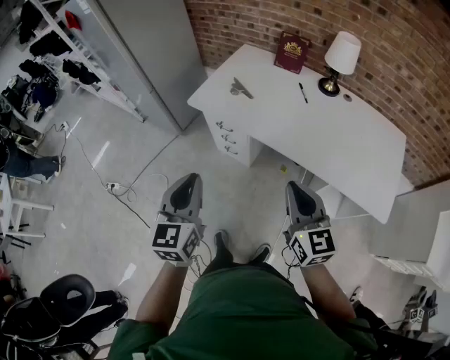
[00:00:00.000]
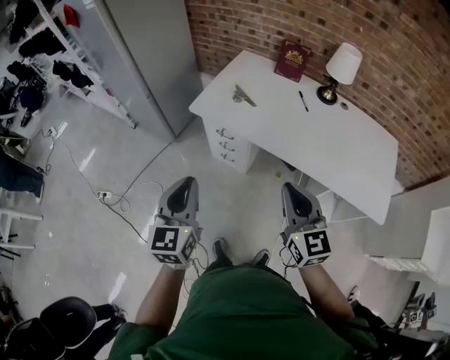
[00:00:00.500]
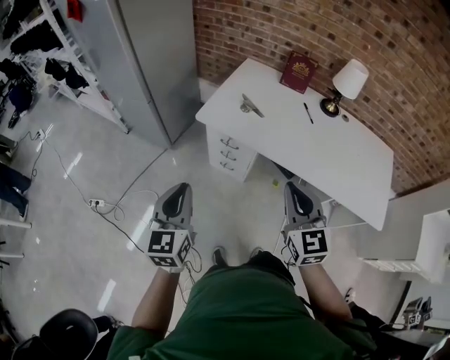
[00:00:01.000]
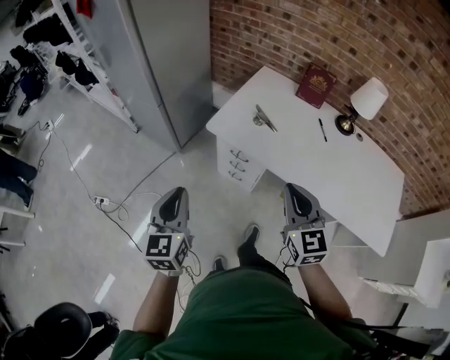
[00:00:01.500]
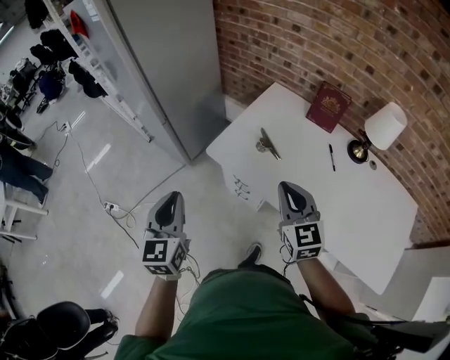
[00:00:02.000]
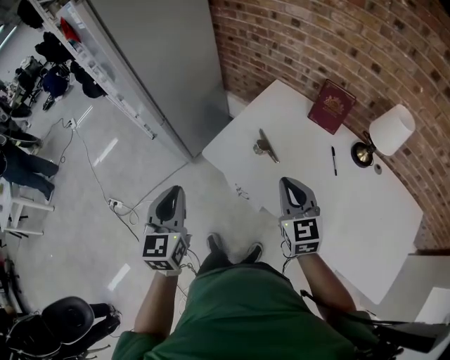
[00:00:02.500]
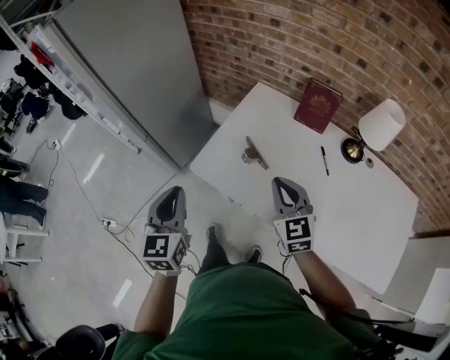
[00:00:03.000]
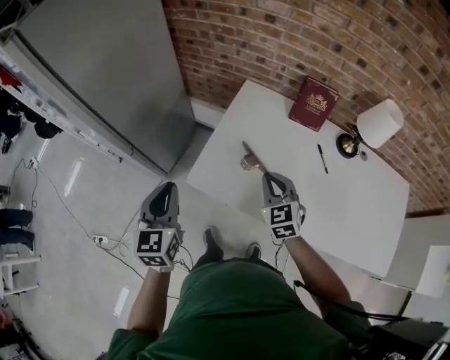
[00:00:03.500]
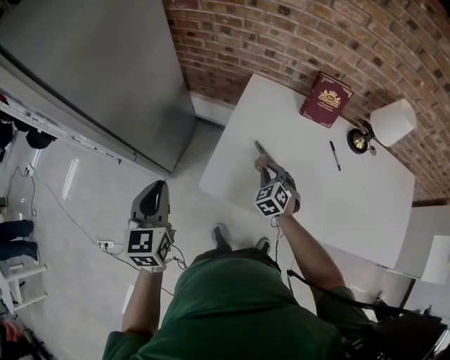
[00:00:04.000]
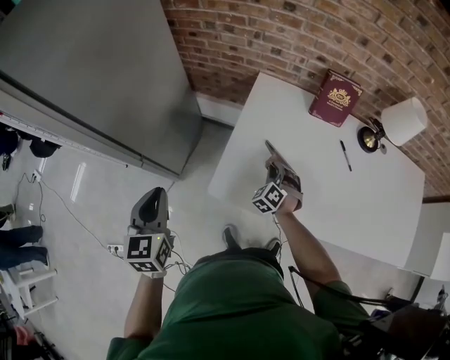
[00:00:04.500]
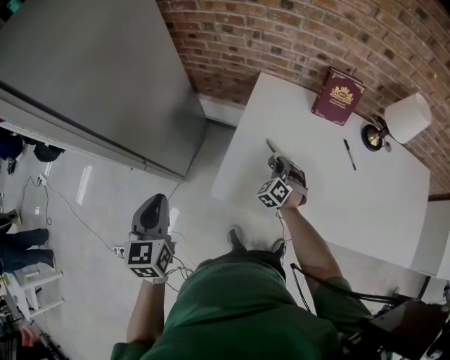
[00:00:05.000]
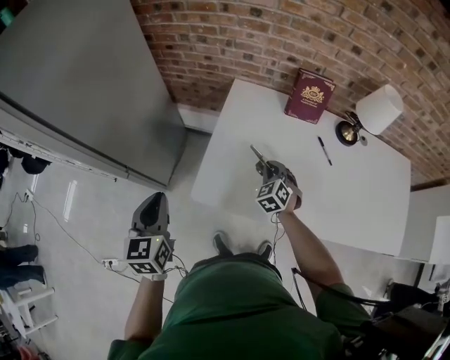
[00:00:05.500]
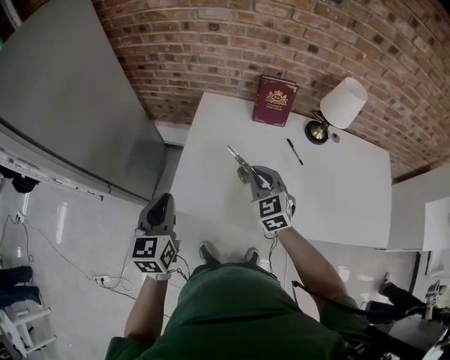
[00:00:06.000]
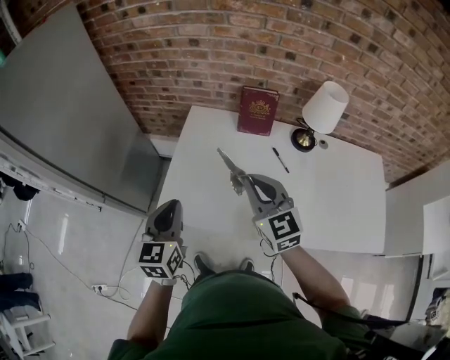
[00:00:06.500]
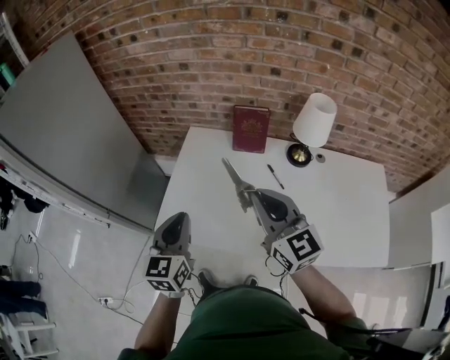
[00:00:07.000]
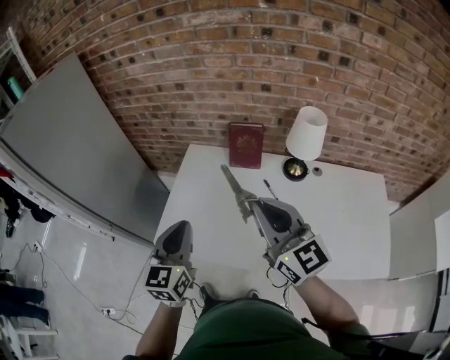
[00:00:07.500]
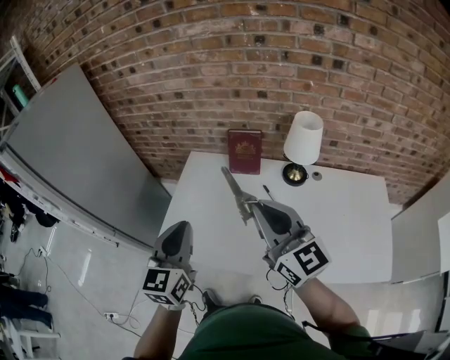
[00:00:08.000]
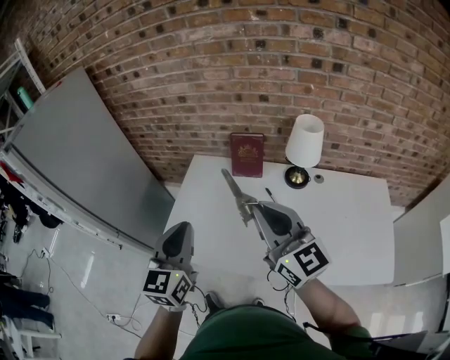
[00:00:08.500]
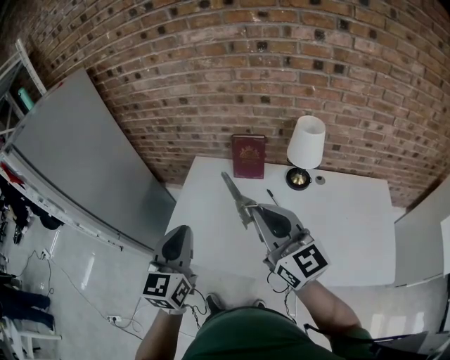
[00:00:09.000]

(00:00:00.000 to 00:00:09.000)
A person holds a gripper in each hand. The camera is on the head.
00:00:00.000 - 00:00:02.000: The right gripper travels forward by approximately 30 cm, while the left gripper shifts about 30 cm forward and to the left.
00:00:02.000 - 00:00:04.500: The left gripper moves roughly 30 cm, while the right gripper travels downward by roughly 30 cm, and angles its fingers downward, by roughly 30 degrees.
00:00:04.500 - 00:00:07.000: The left gripper moves to the right, approximately 35 cm. The right gripper is displaced upward and to the right by about 40 cm, and tips its fingers upward by some 40 degrees.
00:00:07.000 - 00:00:09.000: The right gripper shifts about 5 cm upward. Meanwhile the left gripper travels upward and to the right by roughly 10 cm.

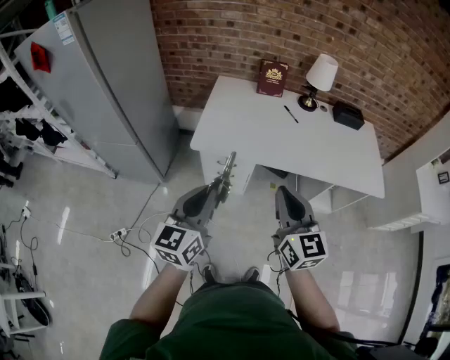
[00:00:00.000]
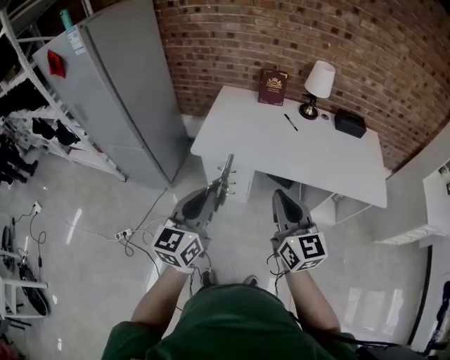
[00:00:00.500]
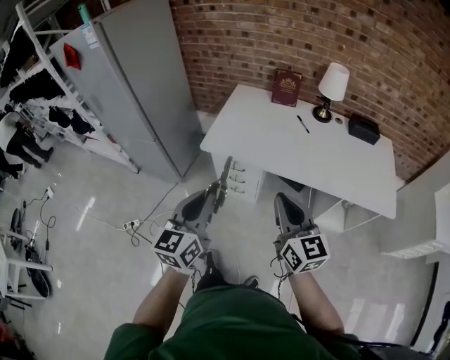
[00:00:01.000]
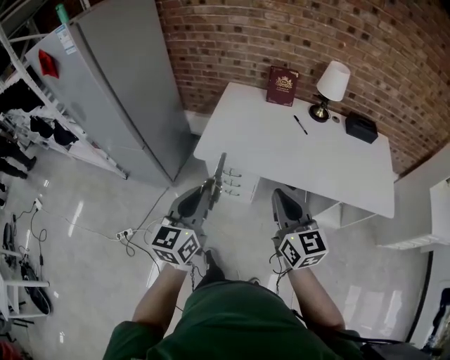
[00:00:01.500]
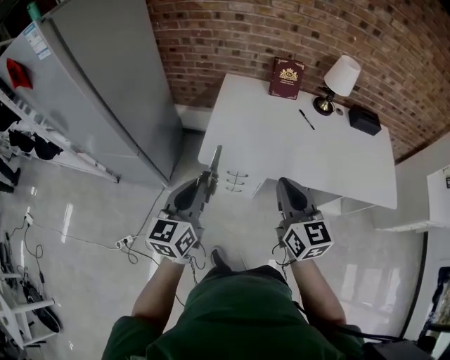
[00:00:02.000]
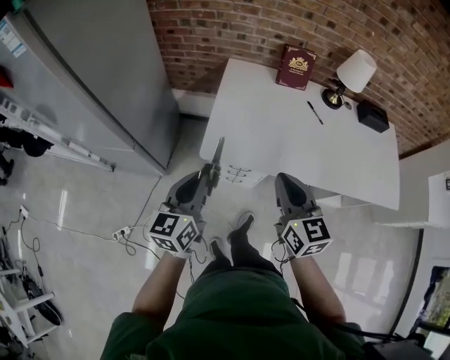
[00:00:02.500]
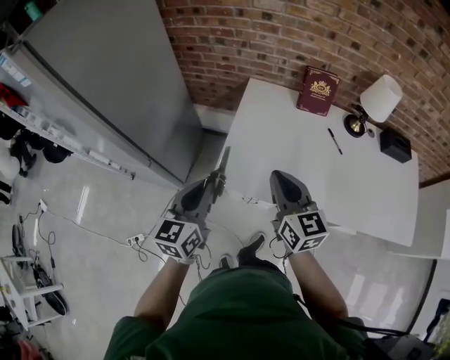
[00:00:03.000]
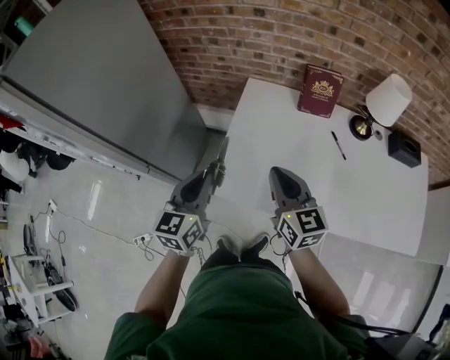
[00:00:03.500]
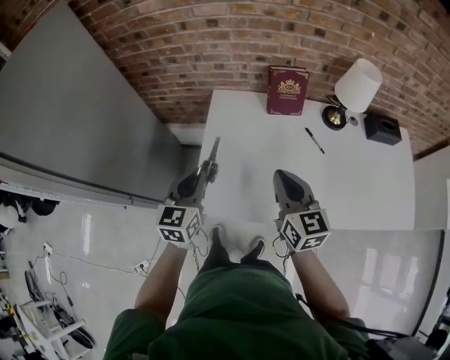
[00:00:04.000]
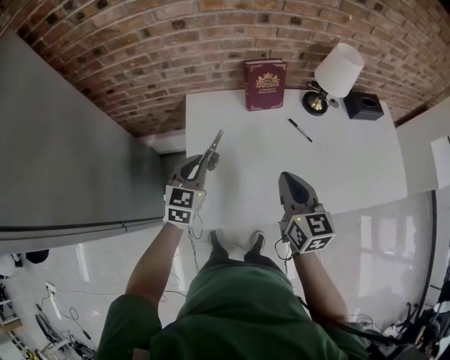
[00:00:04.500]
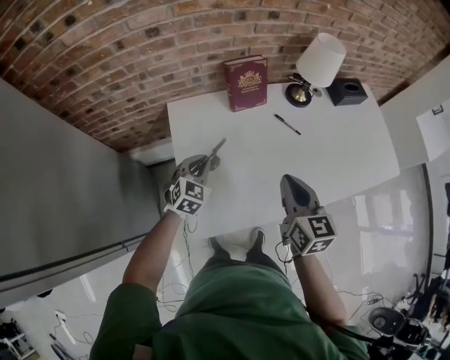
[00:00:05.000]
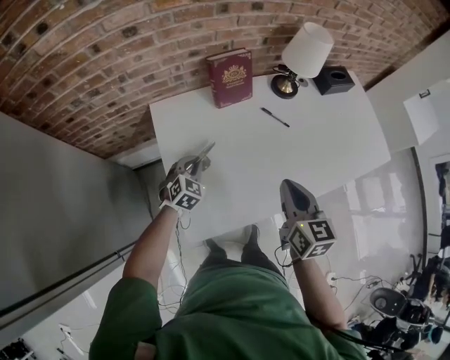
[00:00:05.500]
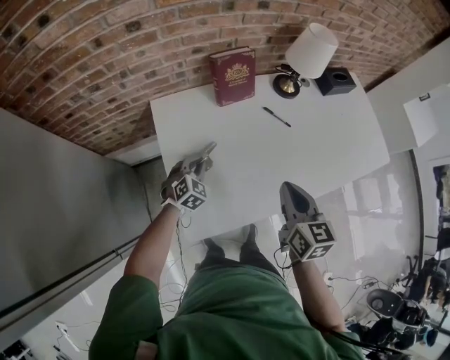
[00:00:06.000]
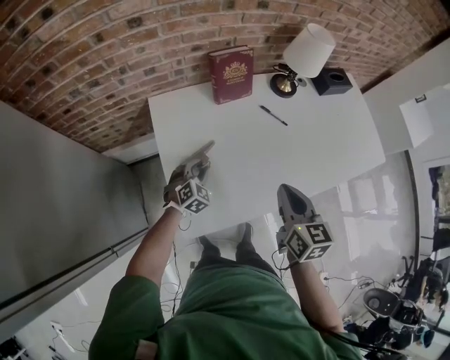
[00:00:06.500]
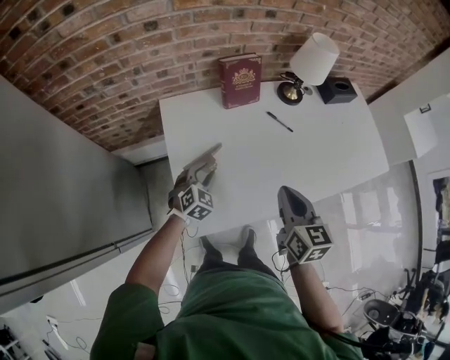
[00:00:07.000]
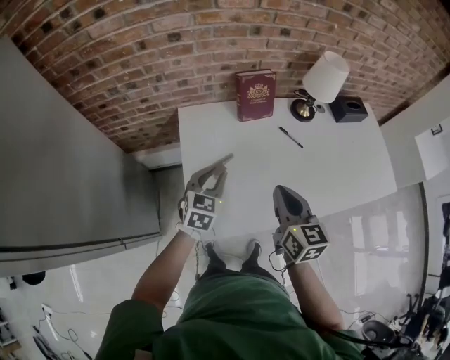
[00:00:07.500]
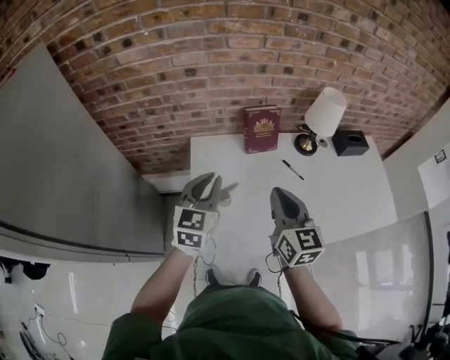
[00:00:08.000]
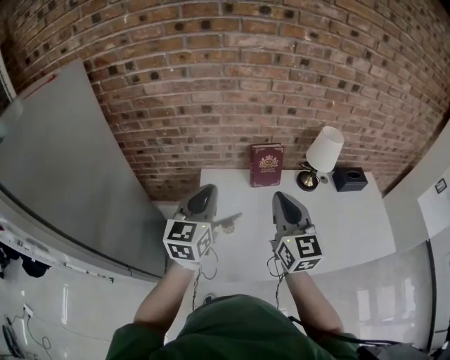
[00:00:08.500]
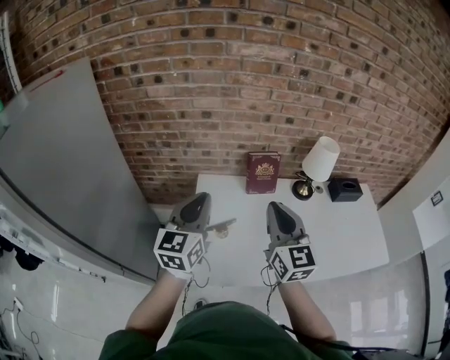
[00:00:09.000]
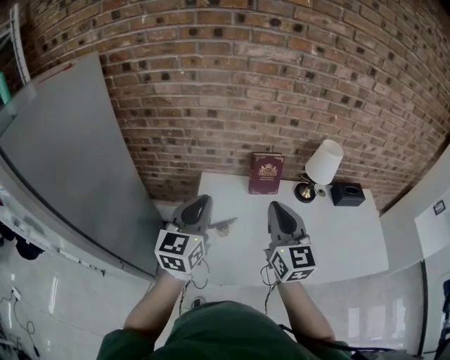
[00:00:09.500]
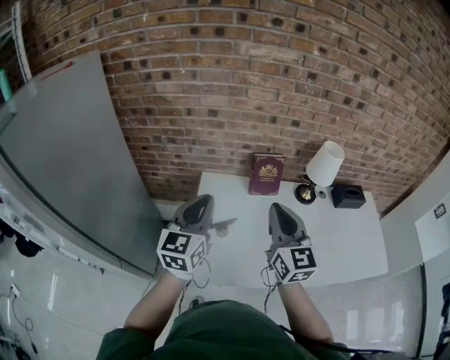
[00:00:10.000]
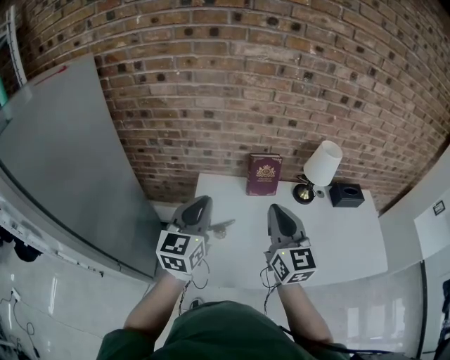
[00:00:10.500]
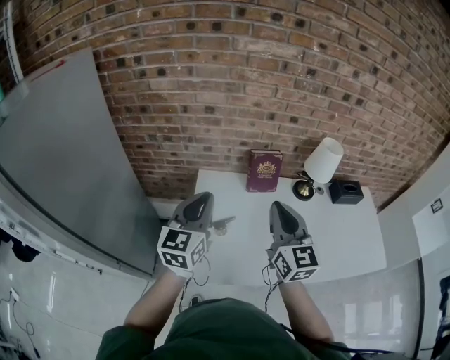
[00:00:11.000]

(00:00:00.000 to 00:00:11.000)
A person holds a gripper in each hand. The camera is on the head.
00:00:00.000 - 00:00:02.000: The right gripper travels forward by some 15 cm. Meanwhile the left gripper is displaced forward and to the left by approximately 15 cm.
00:00:02.000 - 00:00:03.500: Both grippers travel together forward, approximately 20 cm.
00:00:03.500 - 00:00:05.500: The left gripper moves downward, about 25 cm, and changes its angle by some 60 degrees. Meanwhile the right gripper shifts by approximately 10 cm, and swivels roughly 50 degrees.
00:00:05.500 - 00:00:07.500: The left gripper is displaced upward and backward by about 15 cm, and rotates about 30 degrees; the right gripper shifts by some 5 cm.
00:00:07.500 - 00:00:09.000: The right gripper heads upward, covering some 15 cm, and rotates about 30 degrees; the left gripper is displaced upward by roughly 25 cm, and points its fingers about 30 degrees further upward.
00:00:09.000 - 00:00:11.000: There are only small adjustments of the grippers.

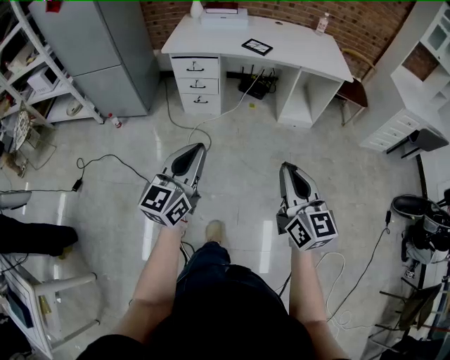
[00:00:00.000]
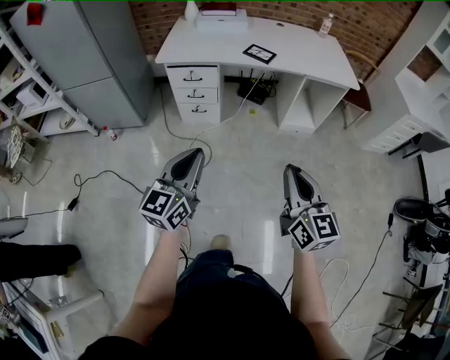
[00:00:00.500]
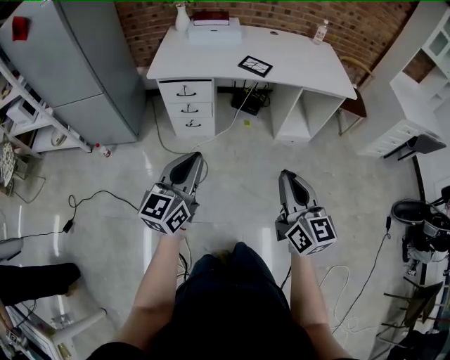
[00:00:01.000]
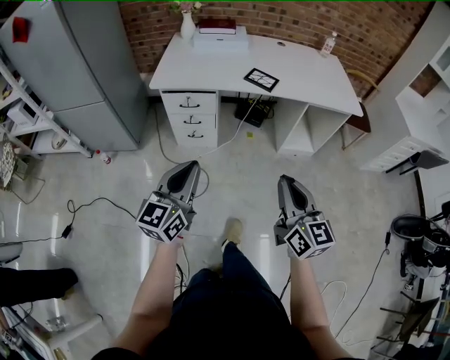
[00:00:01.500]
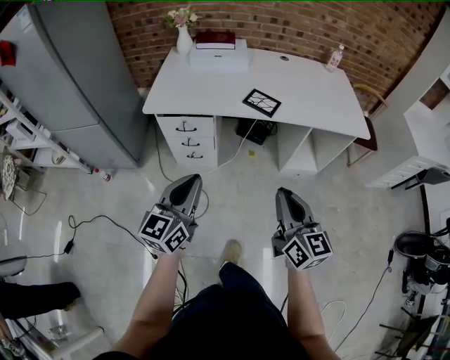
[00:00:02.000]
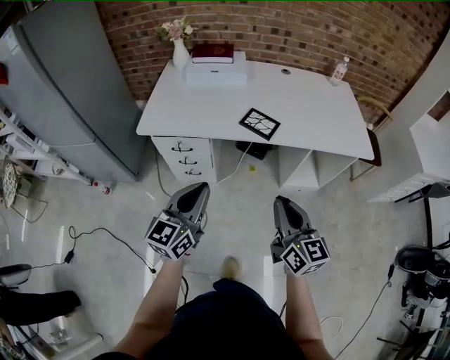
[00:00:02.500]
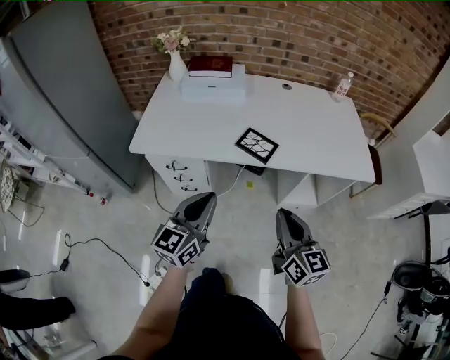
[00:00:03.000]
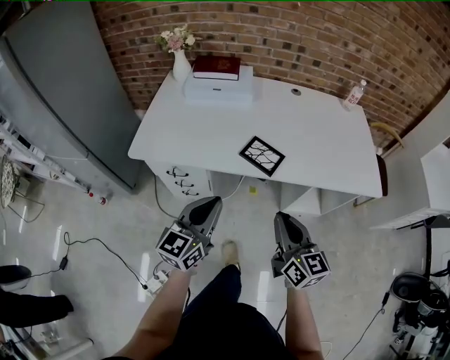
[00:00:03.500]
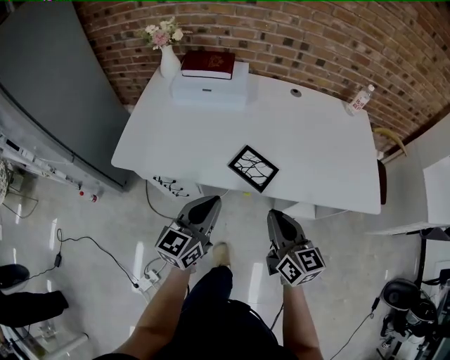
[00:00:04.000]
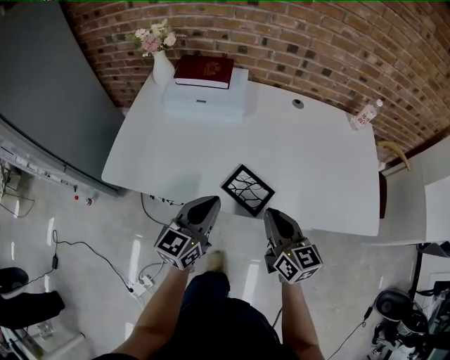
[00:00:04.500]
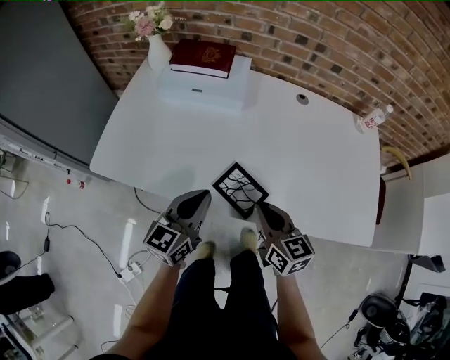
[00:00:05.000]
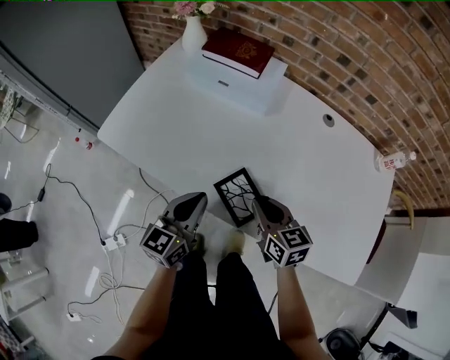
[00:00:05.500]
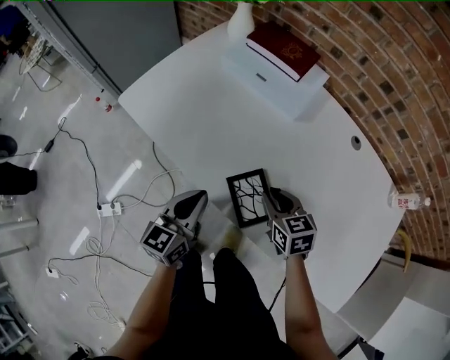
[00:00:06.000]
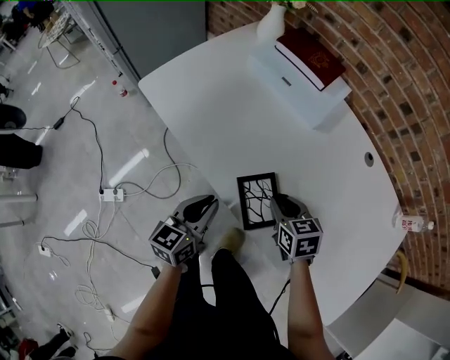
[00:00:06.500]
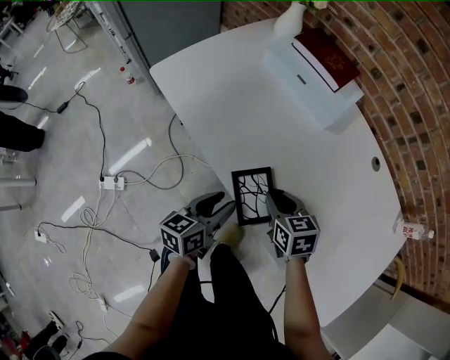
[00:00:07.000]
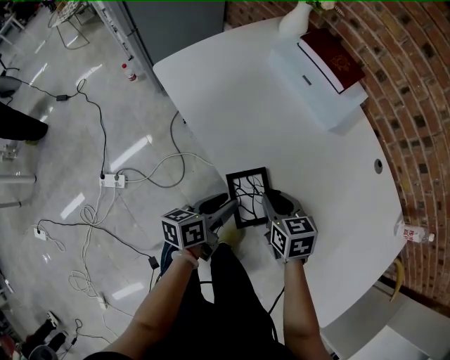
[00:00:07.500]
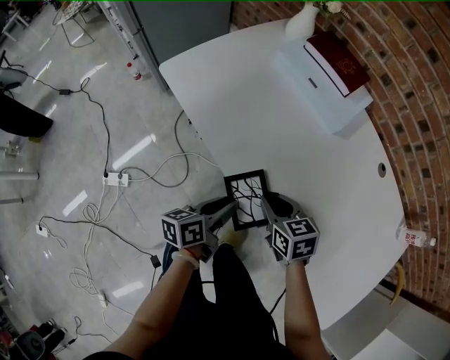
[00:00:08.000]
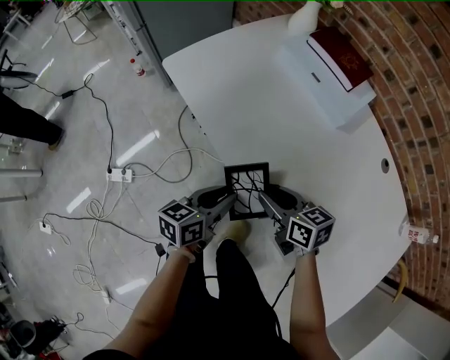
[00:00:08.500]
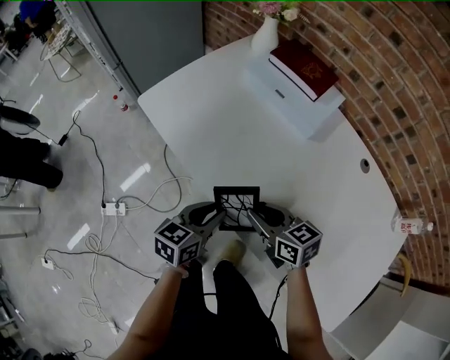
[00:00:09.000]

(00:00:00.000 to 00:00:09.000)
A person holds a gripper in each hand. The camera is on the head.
00:00:00.000 - 00:00:02.000: Both grippers travel together forward, about 40 cm.
00:00:02.000 - 00:00:04.500: Both grippers are carried forward, approximately 40 cm.
00:00:04.500 - 00:00:07.000: Both grippers travel together downward, about 15 cm. The right gripper angles its fingers downward, by about 30 degrees. Meanwhile the left gripper rotates about 50 degrees, and opens its fingers.
00:00:07.000 - 00:00:09.000: The right gripper goes some 5 cm upward, and swivels about 20 degrees.
